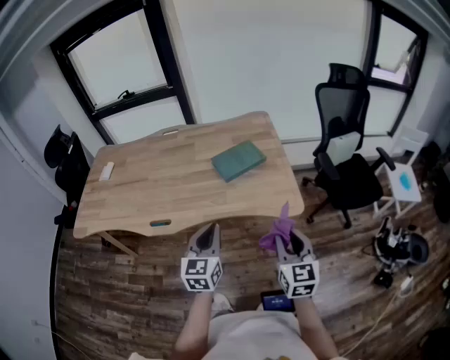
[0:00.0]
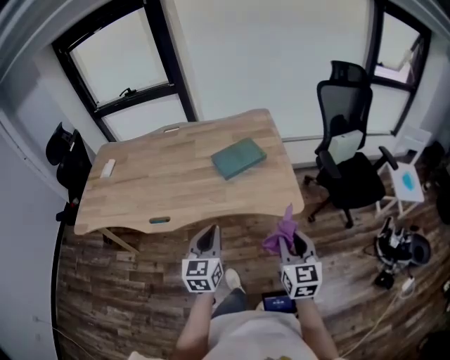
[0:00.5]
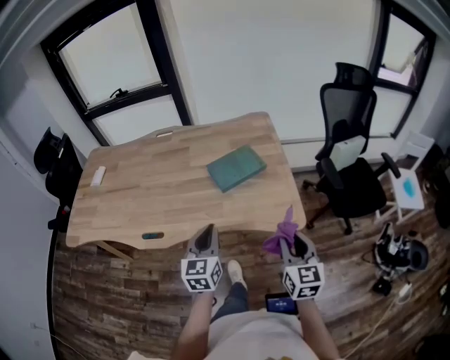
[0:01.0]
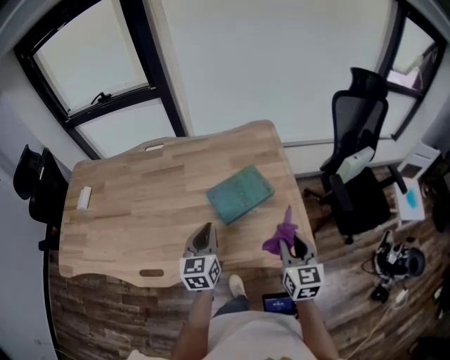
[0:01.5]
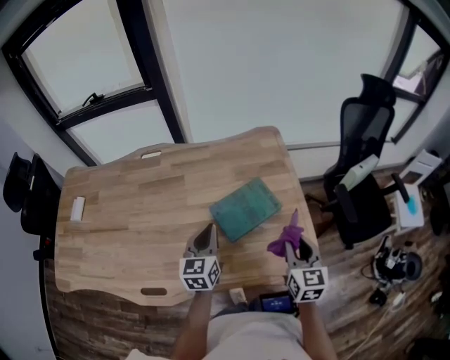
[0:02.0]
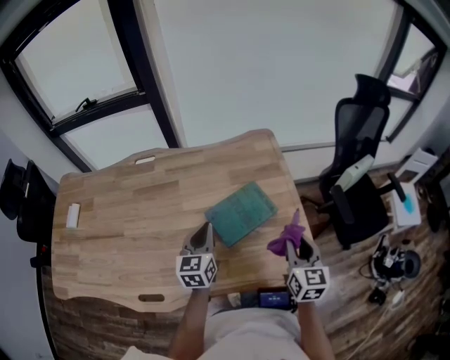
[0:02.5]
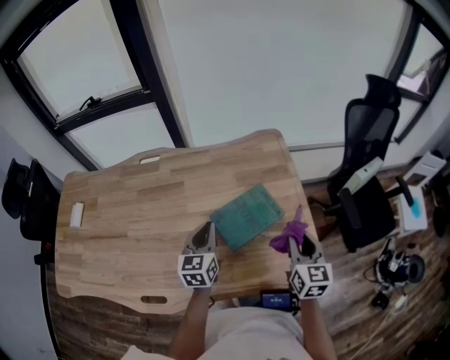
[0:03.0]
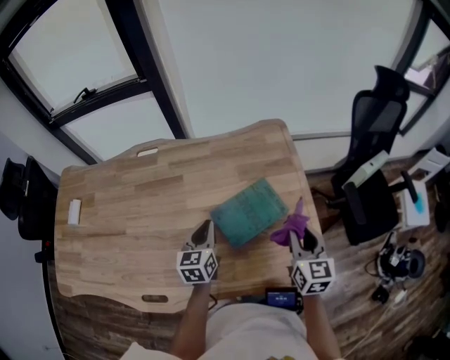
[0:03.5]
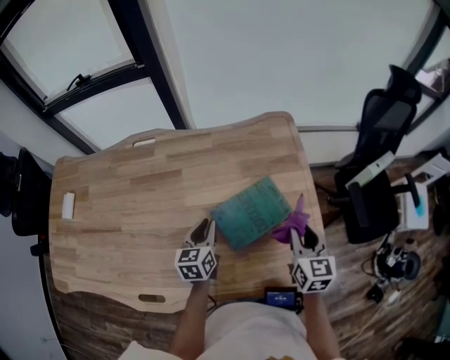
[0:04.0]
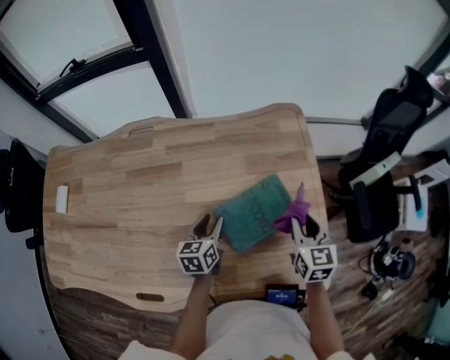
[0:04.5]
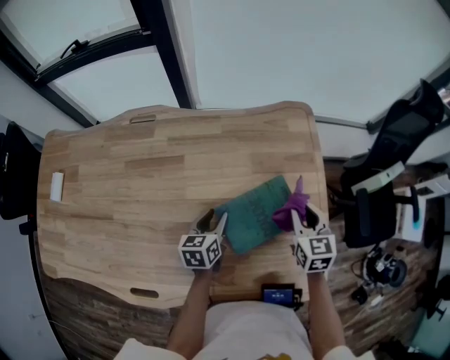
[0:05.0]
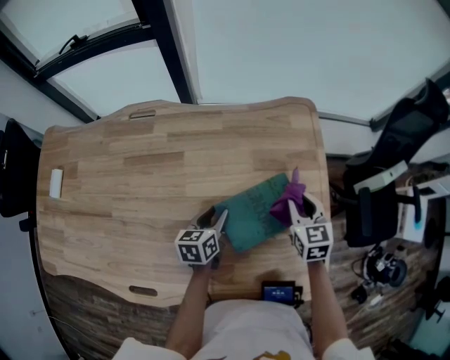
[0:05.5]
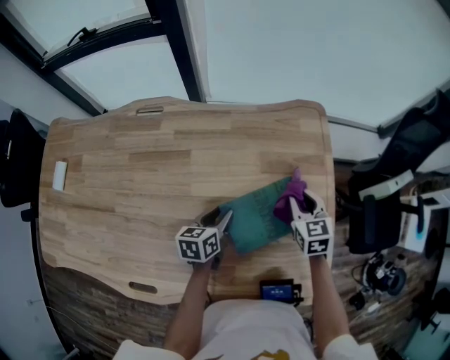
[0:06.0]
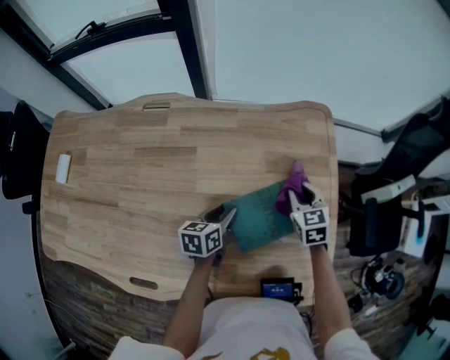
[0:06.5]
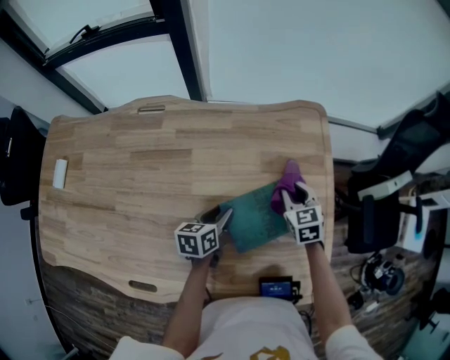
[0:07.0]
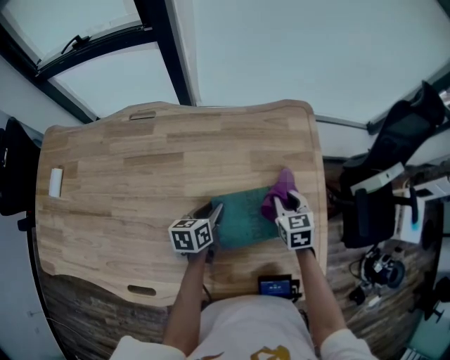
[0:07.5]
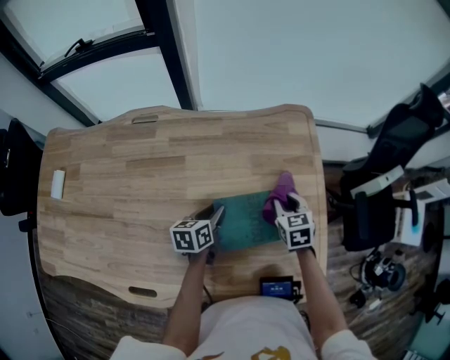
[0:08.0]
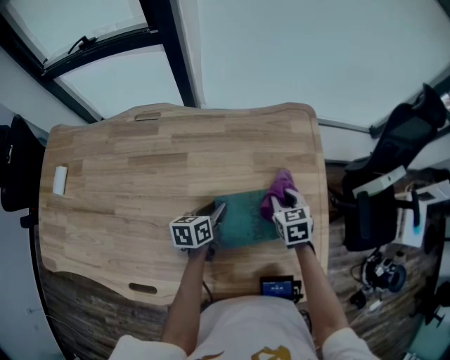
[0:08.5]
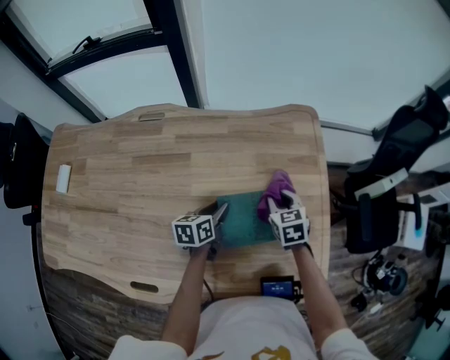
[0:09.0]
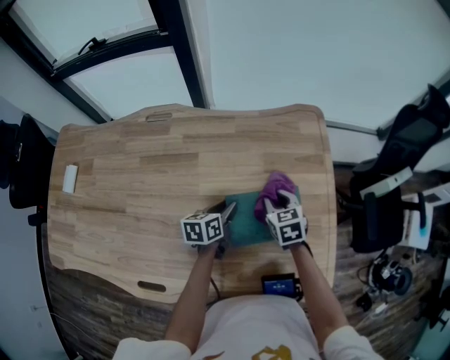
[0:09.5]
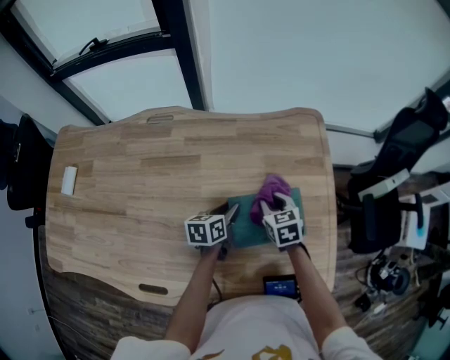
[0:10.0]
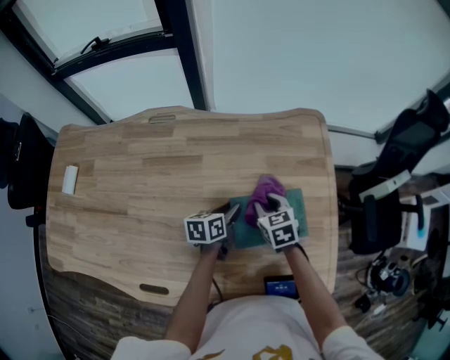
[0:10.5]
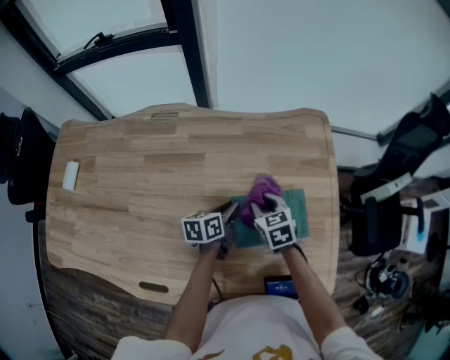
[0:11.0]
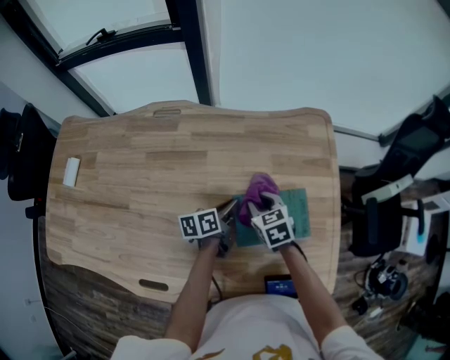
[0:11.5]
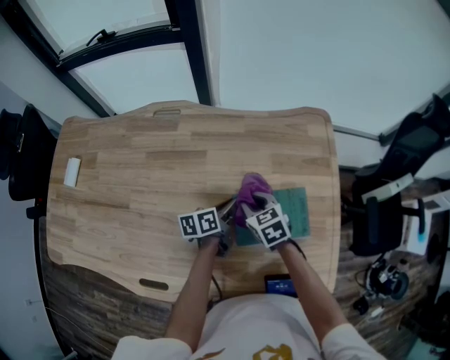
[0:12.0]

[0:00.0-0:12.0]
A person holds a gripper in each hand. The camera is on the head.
0:00.0 to 0:02.0: The two grippers go about 30 cm forward.
0:02.0 to 0:04.0: The right gripper travels forward by roughly 10 cm. The left gripper heads downward and forward, covering roughly 10 cm.
0:04.0 to 0:06.0: The left gripper travels downward by approximately 5 cm, rotates approximately 20 degrees, and opens up; the right gripper shifts roughly 15 cm forward and downward, and swivels roughly 20 degrees.
0:06.0 to 0:08.0: There are only small adjustments of the grippers.
0:08.0 to 0:10.0: The right gripper goes some 10 cm to the left.
0:10.0 to 0:12.0: The right gripper shifts some 10 cm to the left.

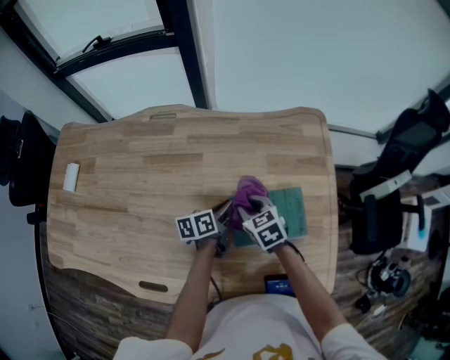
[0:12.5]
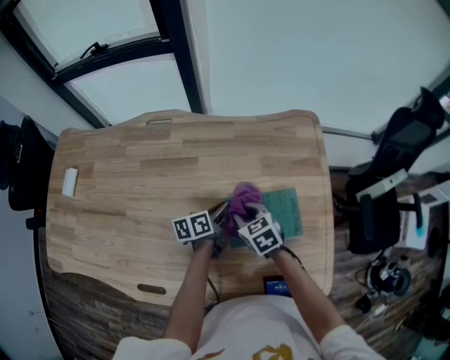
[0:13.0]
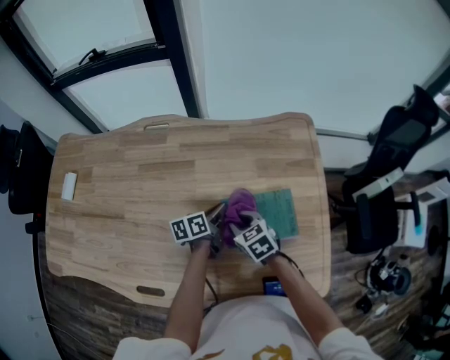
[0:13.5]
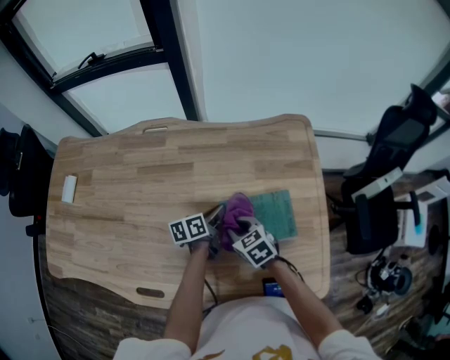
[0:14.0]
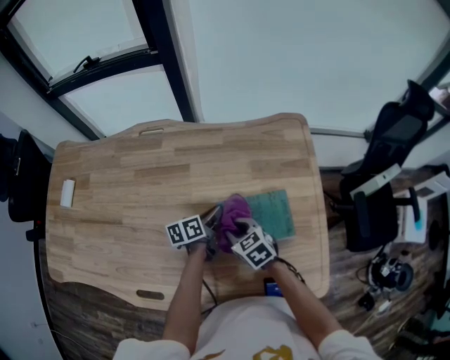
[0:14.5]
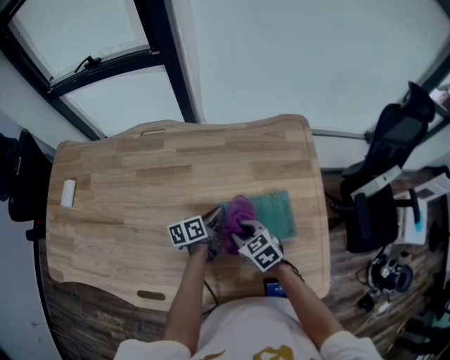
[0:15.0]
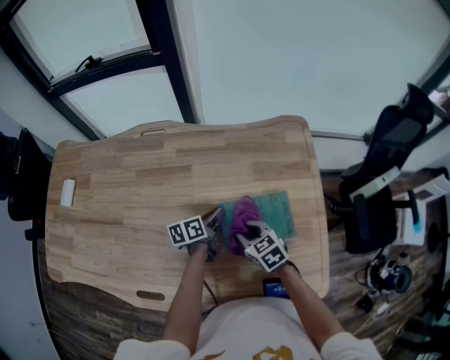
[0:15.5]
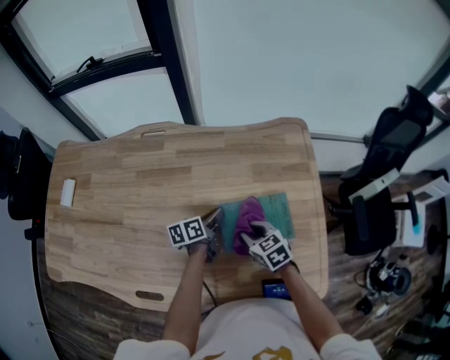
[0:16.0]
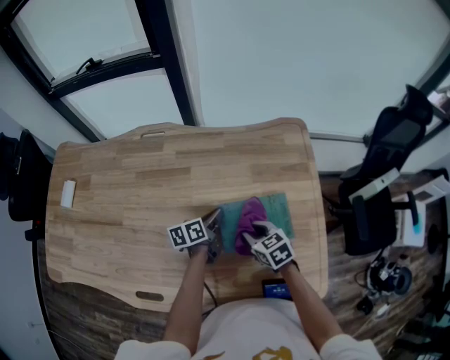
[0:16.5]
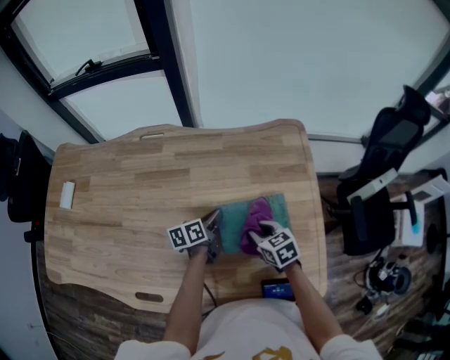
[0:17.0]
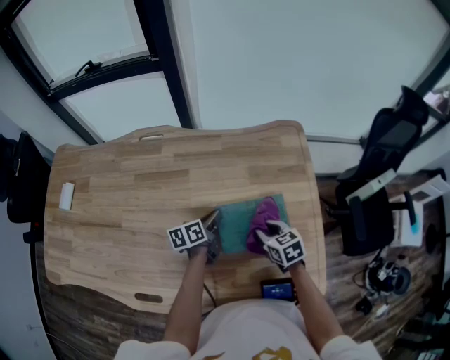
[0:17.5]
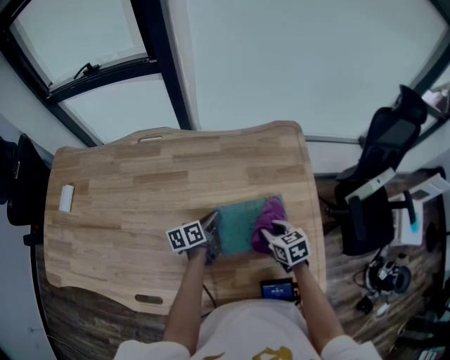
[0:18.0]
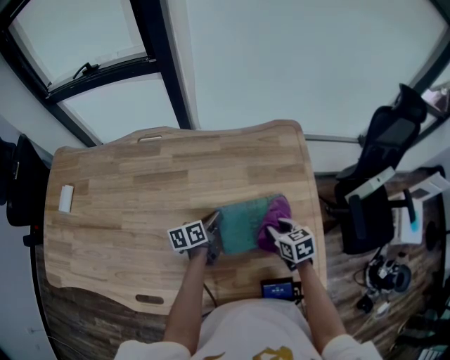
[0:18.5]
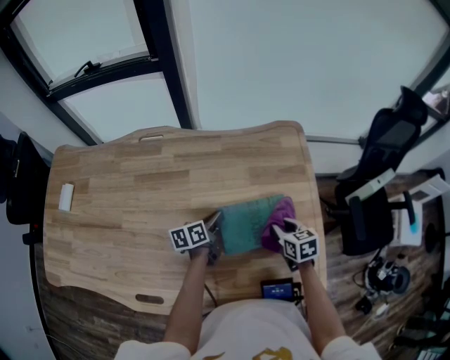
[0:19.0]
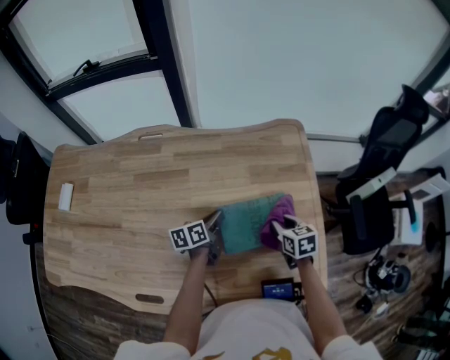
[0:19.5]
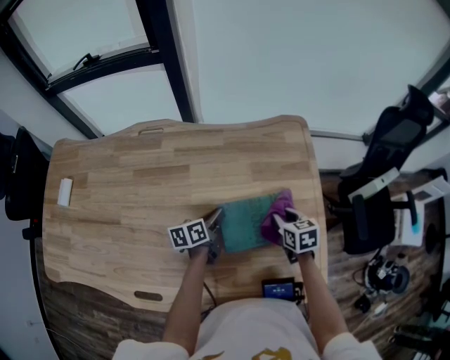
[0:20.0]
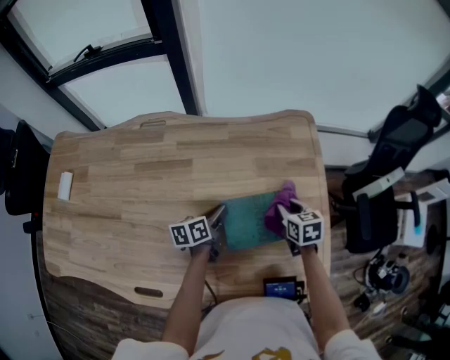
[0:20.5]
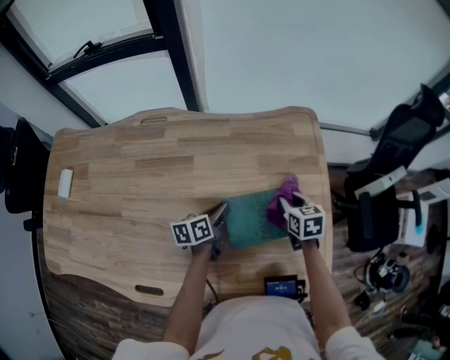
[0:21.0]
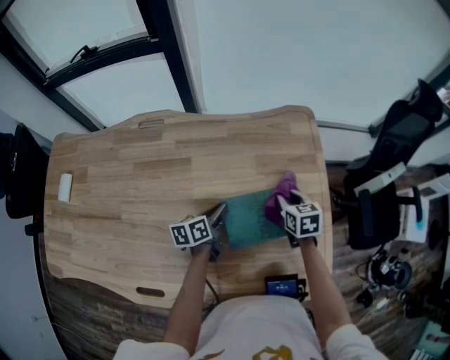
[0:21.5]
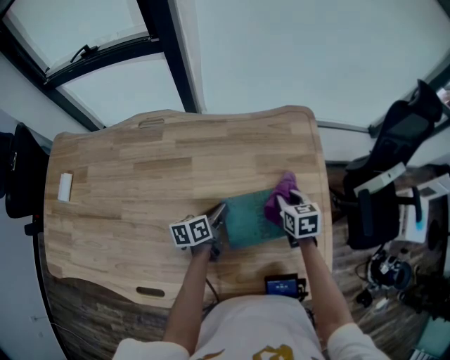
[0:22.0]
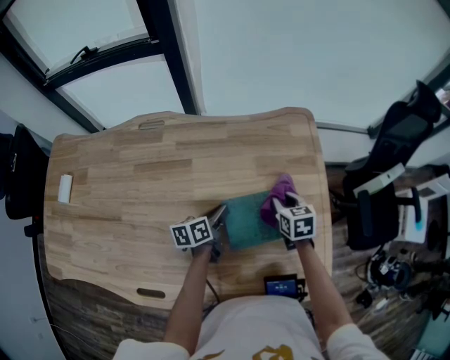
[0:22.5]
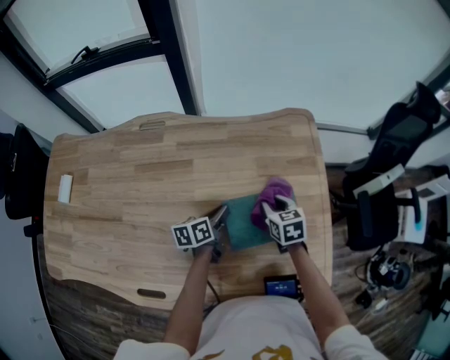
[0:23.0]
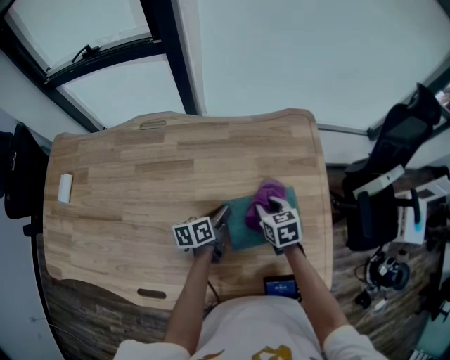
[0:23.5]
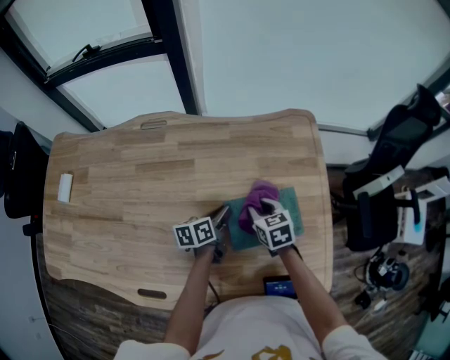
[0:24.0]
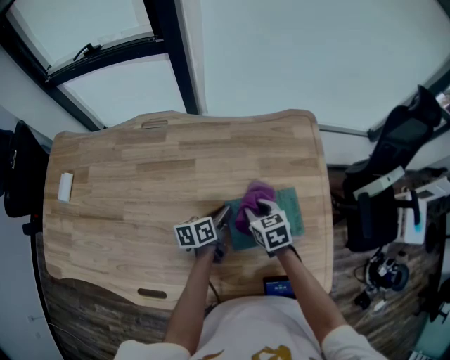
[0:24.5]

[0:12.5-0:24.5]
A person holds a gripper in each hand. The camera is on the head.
0:12.5 to 0:14.5: The right gripper is displaced backward by approximately 5 cm.
0:14.5 to 0:16.5: The right gripper travels to the right by some 5 cm.
0:16.5 to 0:18.5: The right gripper goes approximately 10 cm to the right.
0:18.5 to 0:20.5: The right gripper is displaced forward by roughly 5 cm.
0:20.5 to 0:22.5: There are only small adjustments of the grippers.
0:22.5 to 0:24.5: The right gripper shifts about 10 cm to the left.

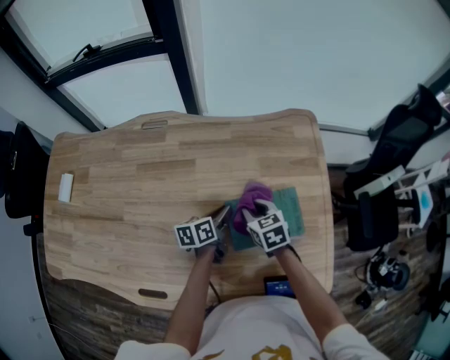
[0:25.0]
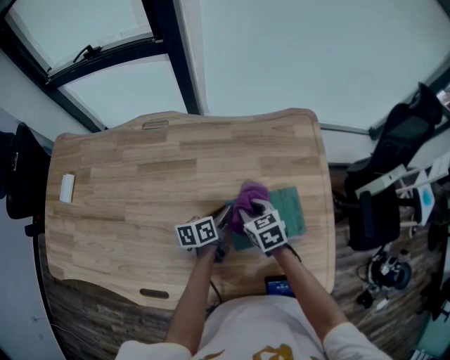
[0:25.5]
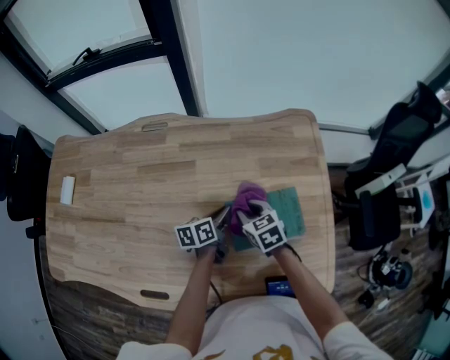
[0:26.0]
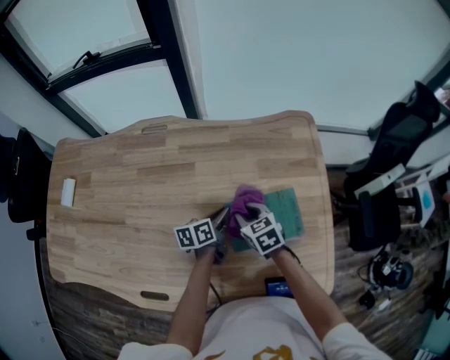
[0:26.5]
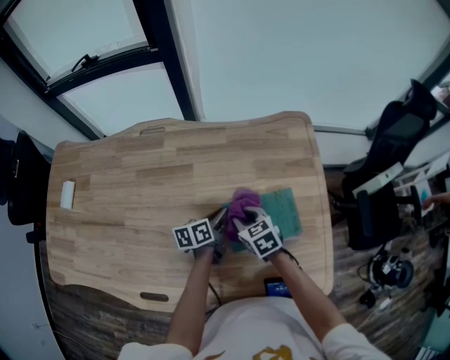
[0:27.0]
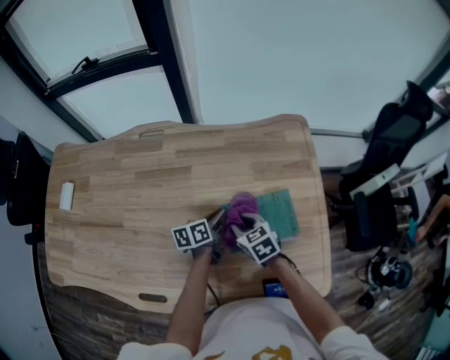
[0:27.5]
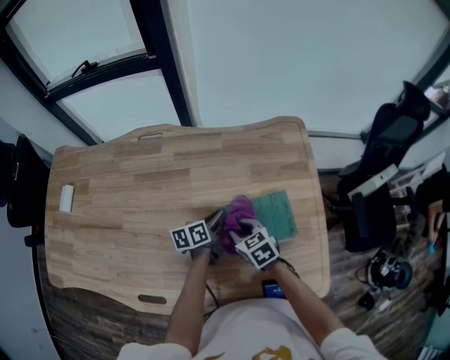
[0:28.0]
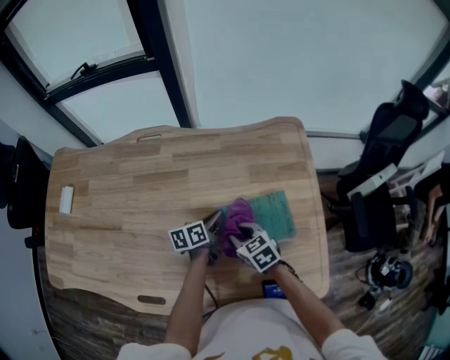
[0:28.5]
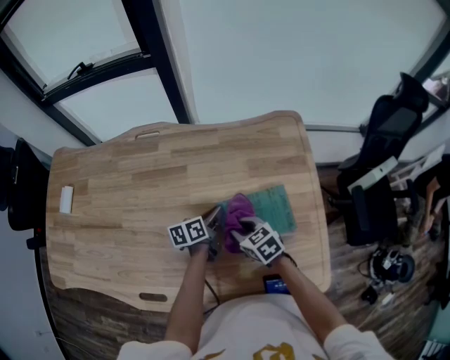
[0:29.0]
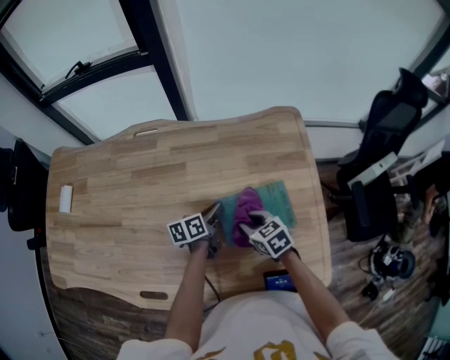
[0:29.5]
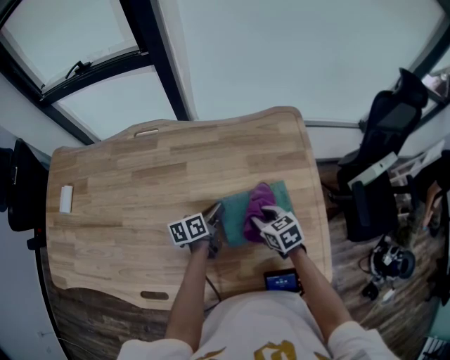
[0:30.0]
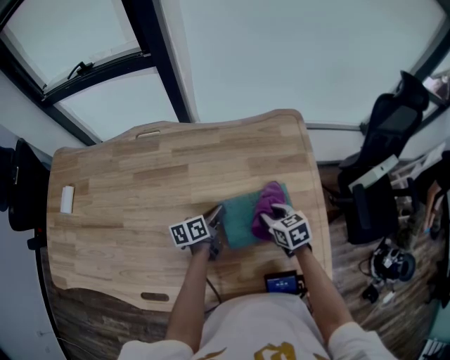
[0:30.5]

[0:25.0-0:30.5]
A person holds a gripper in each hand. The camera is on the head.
0:25.0 to 0:27.0: The grippers move only a little.
0:27.0 to 0:28.5: The grippers make only small movements.
0:28.5 to 0:30.5: The right gripper heads to the right, covering about 10 cm.
